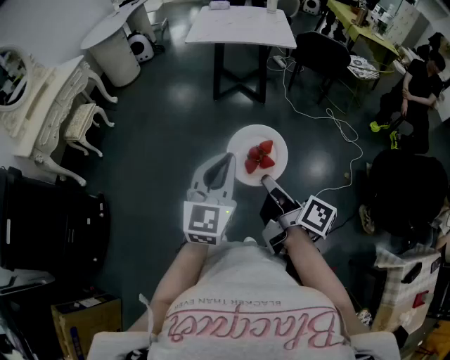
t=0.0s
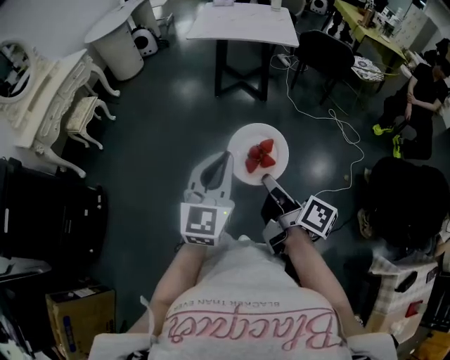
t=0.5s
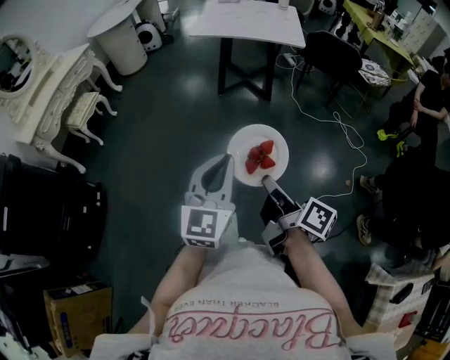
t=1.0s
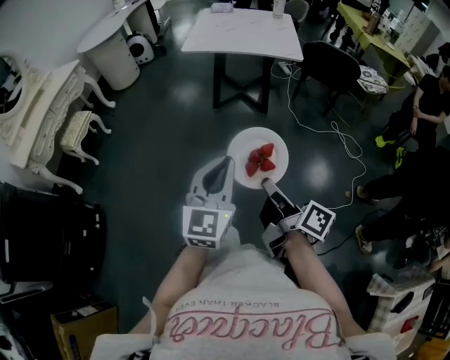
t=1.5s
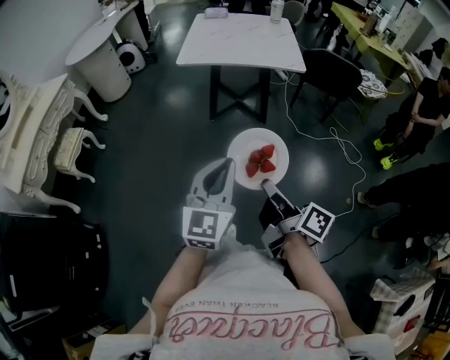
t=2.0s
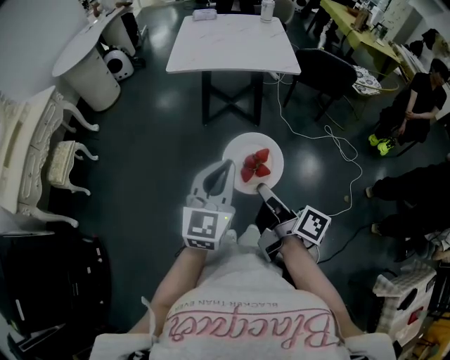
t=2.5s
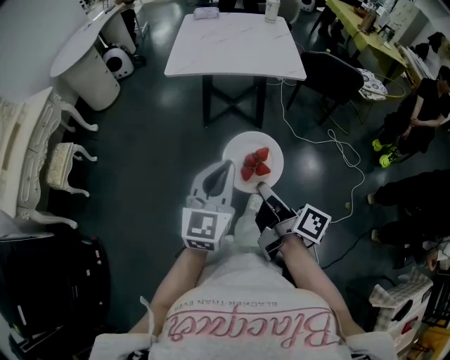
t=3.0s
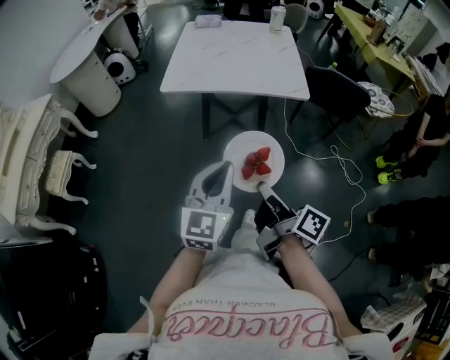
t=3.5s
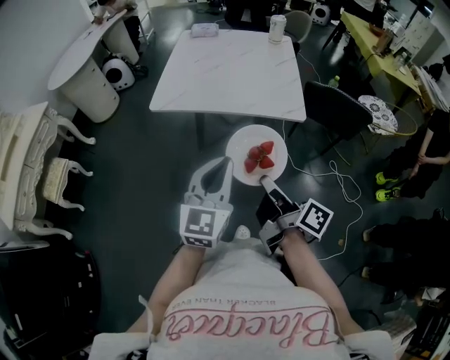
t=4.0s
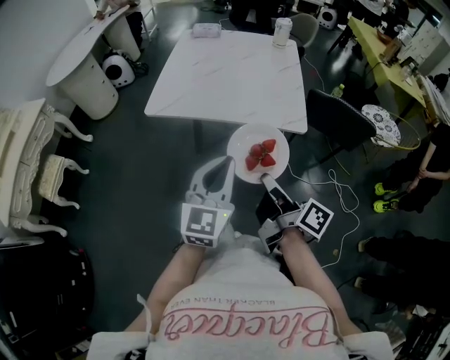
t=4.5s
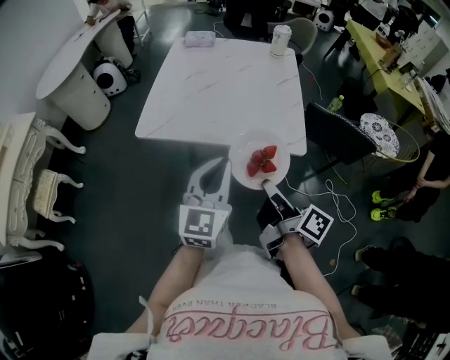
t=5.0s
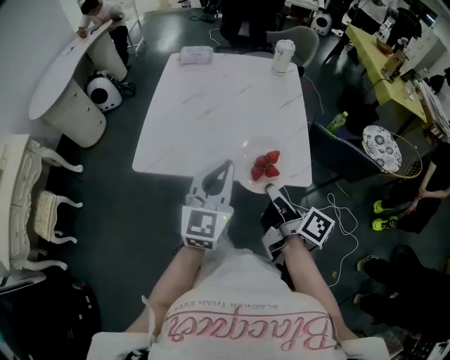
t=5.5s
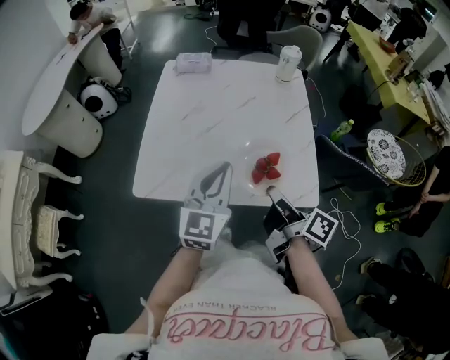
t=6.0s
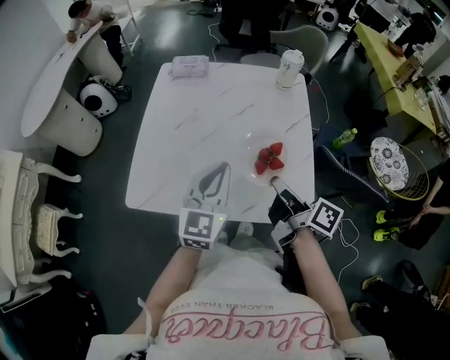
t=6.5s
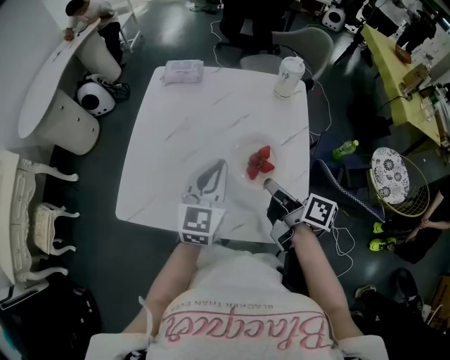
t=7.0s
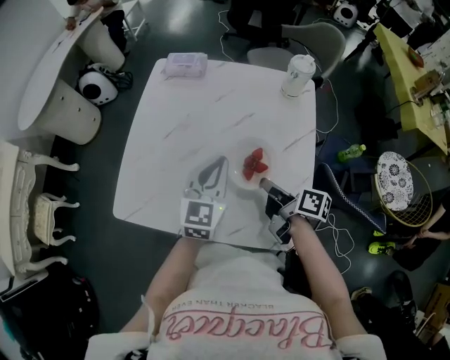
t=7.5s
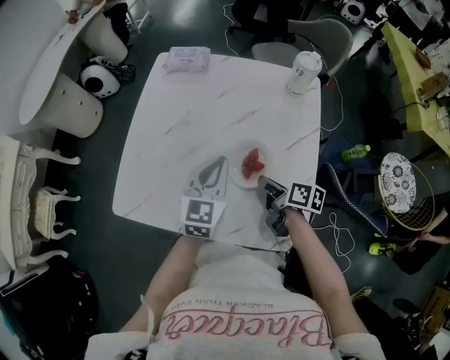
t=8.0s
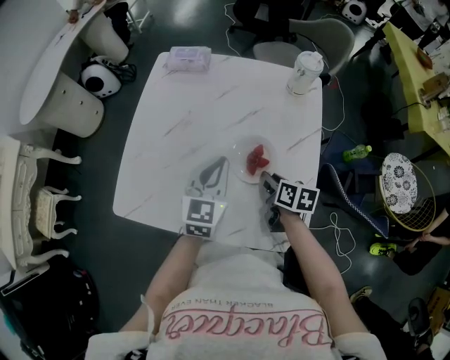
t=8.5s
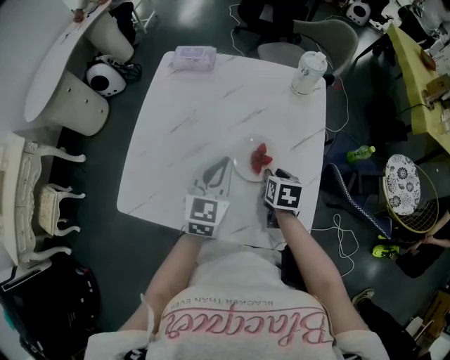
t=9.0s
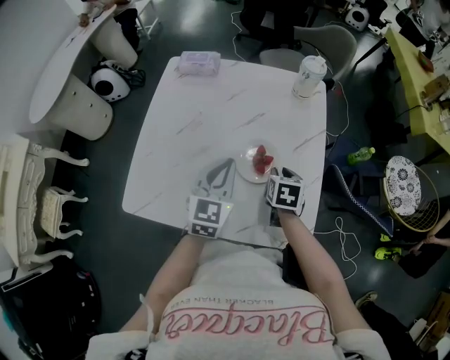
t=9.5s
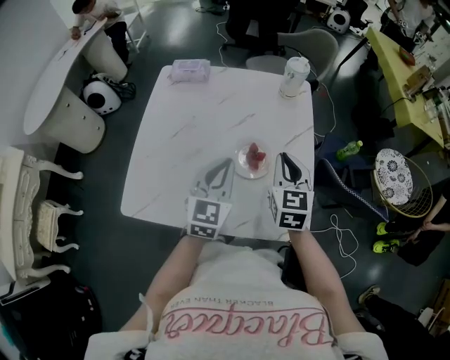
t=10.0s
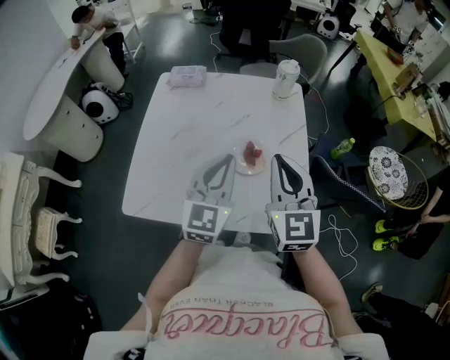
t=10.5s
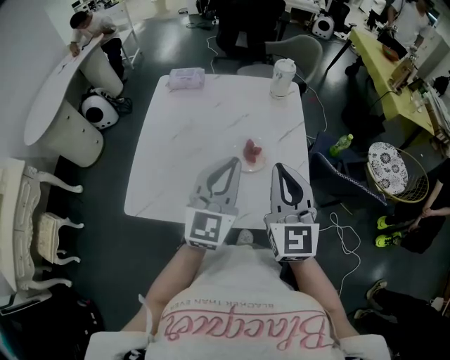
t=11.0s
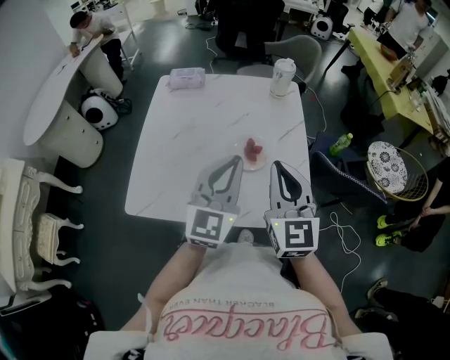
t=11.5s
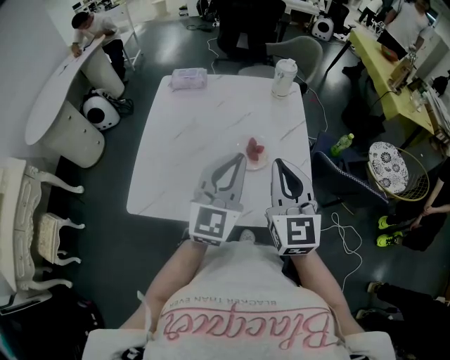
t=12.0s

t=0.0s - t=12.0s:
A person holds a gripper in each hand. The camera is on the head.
t=0.0s - t=2.0s: Both grippers travel together forward, about 25 cm.
t=2.0s - t=4.0s: The grippers both shift forward by roughly 35 cm.
t=4.0s - t=6.0s: The two grippers go roughly 40 cm forward.
t=6.0s - t=8.0s: Both grippers travel together forward, downward and to the right, some 25 cm. The right gripper turns by some 30 degrees.
t=8.0s - t=10.0s: The right gripper moves upward, about 15 cm, rotates around the line of its fingers by roughly 60 degrees, counterclockwise from behind, and opens, then closes once more. The left gripper moves approximately 5 cm.
t=10.0s - t=12.0s: The left gripper is displaced upward and backward by approximately 15 cm. Meanwhile the right gripper travels backward and upward by about 15 cm.

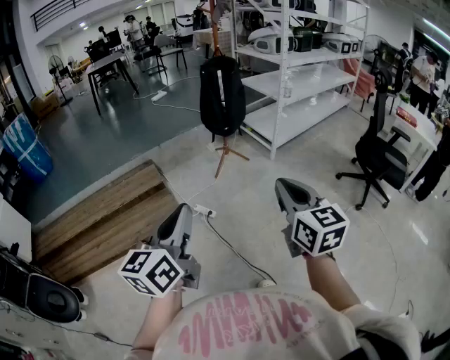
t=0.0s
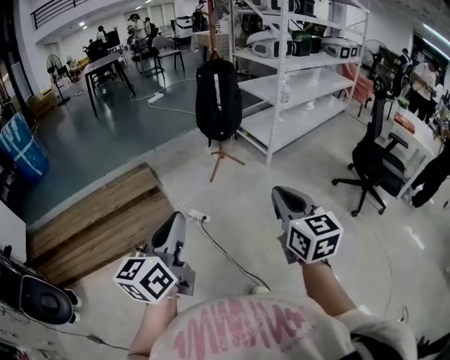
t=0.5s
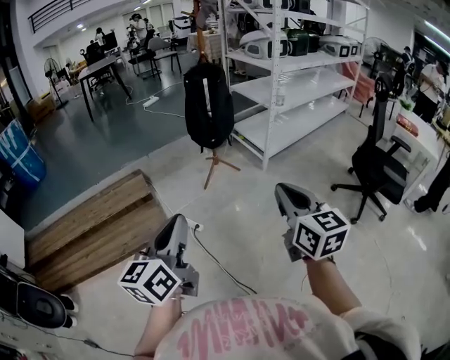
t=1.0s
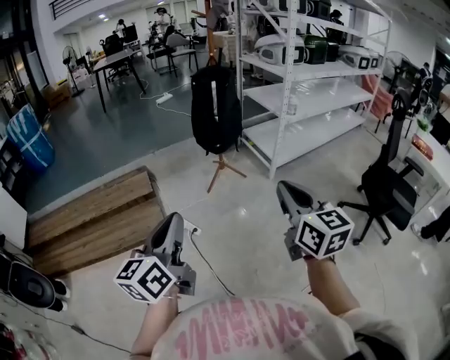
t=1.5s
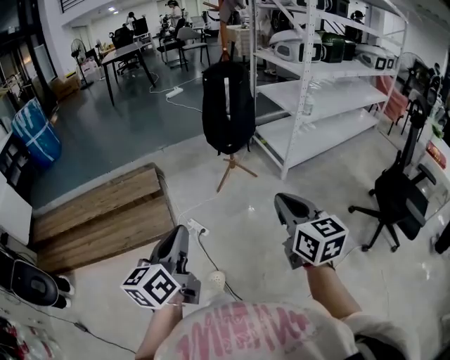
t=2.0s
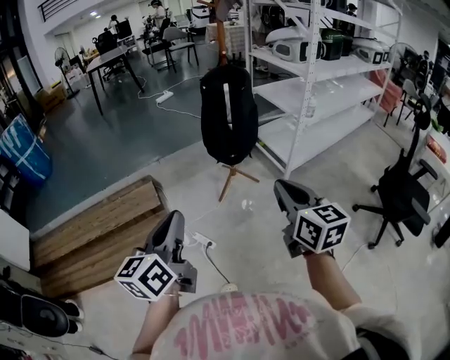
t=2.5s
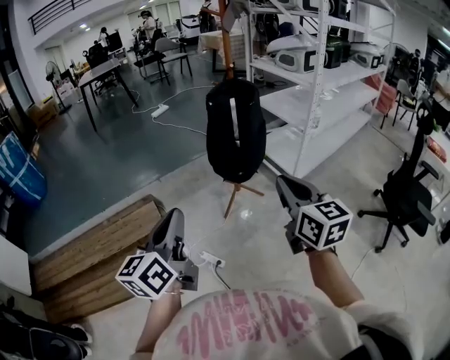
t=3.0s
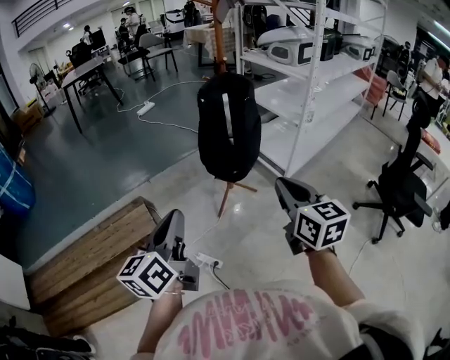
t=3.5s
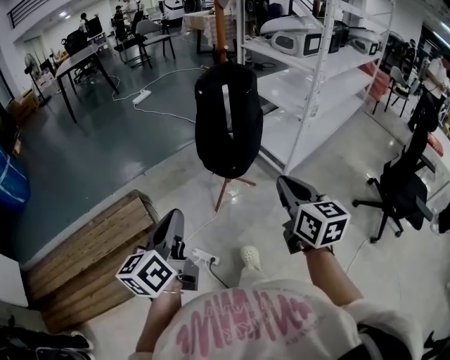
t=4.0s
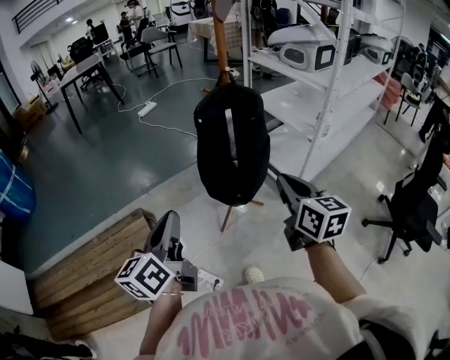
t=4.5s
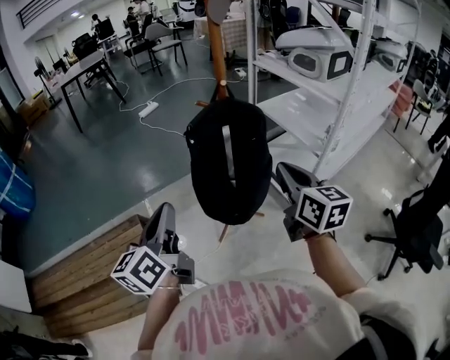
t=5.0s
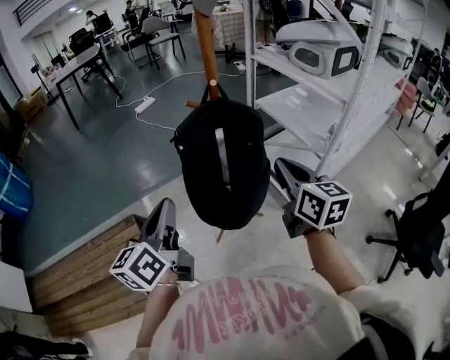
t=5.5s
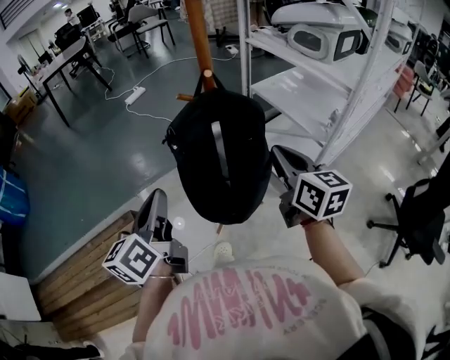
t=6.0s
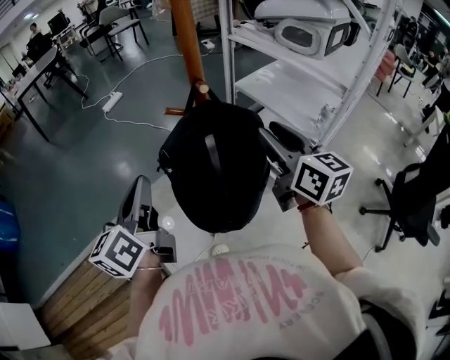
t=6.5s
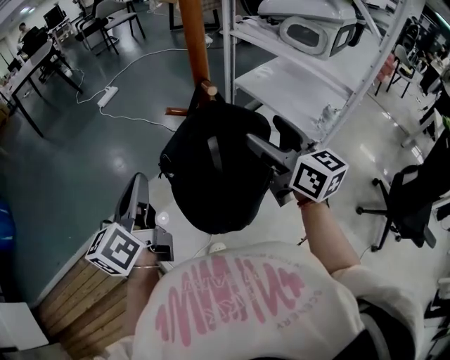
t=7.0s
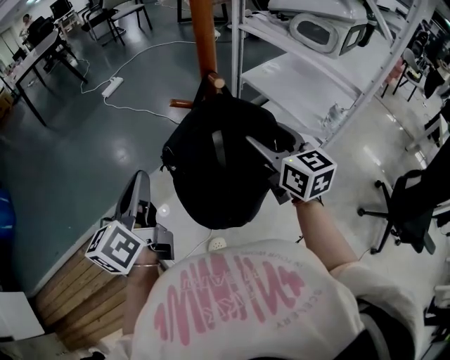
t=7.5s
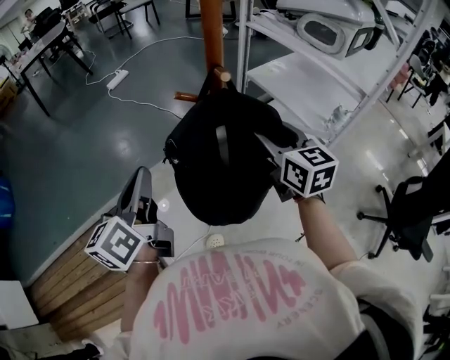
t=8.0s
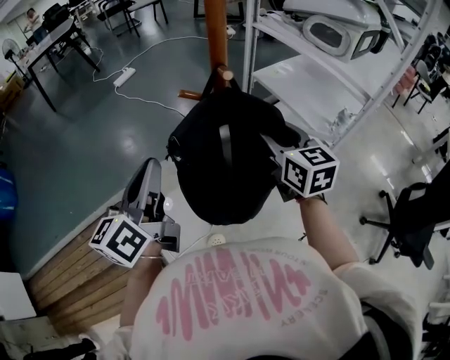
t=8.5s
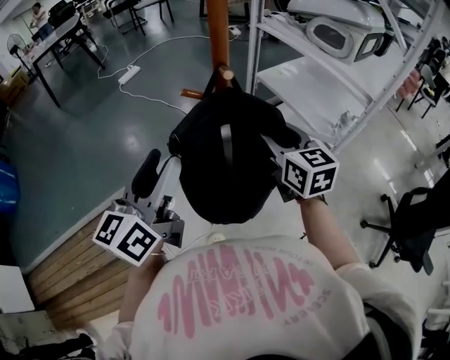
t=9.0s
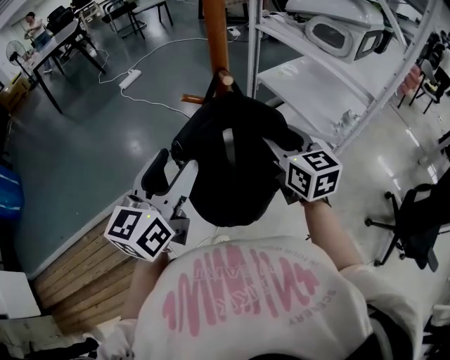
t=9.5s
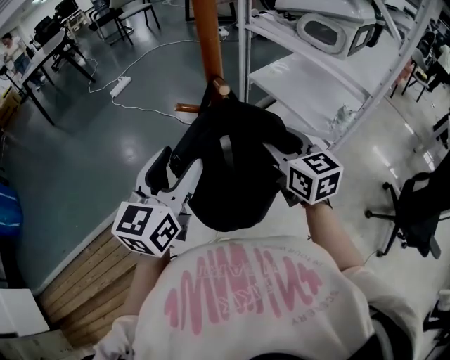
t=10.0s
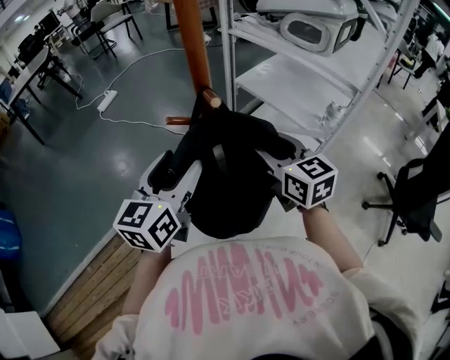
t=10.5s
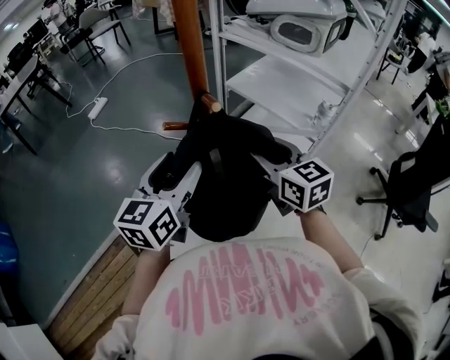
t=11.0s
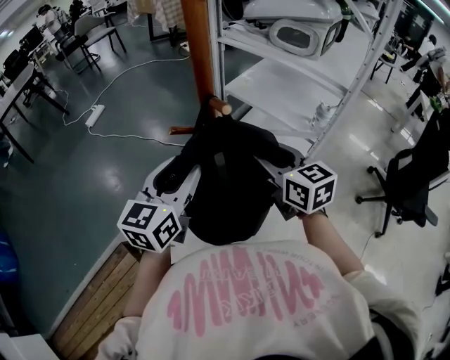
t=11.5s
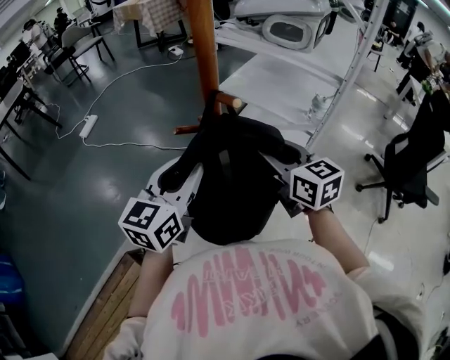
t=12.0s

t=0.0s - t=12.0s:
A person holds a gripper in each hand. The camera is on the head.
t=0.0s - t=2.0s: The left gripper travels forward, to the right and downward by some 20 cm. The right gripper shifts some 25 cm forward and to the right.
t=2.0s - t=4.0s: Both grippers move forward, approximately 35 cm.
t=4.0s - t=6.0s: Both grippers move forward, roughly 35 cm.
t=6.0s - t=8.0s: The grippers both shift forward by some 10 cm. The right gripper opens its fingers.
t=8.0s - t=10.0s: The left gripper goes some 10 cm to the right, rotates roughly 30 degrees, and opens its fingers.
t=10.0s - t=12.0s: The left gripper turns by some 20 degrees, and closes up.

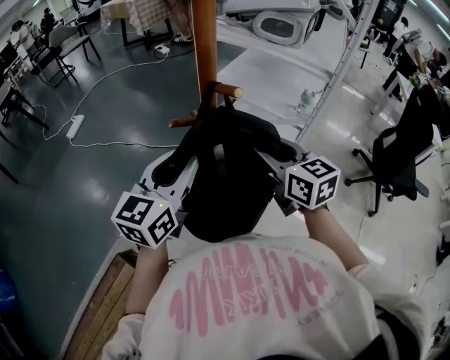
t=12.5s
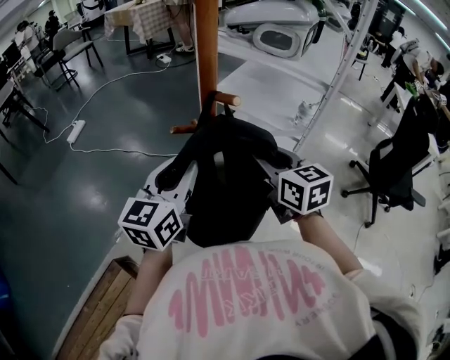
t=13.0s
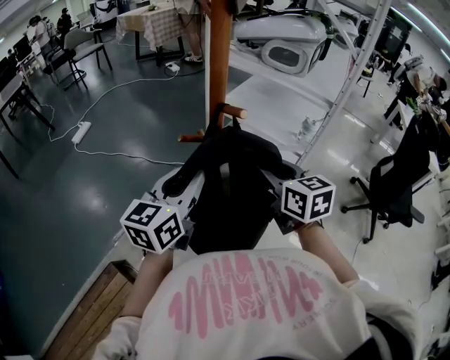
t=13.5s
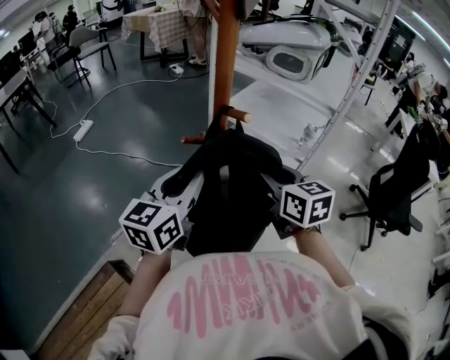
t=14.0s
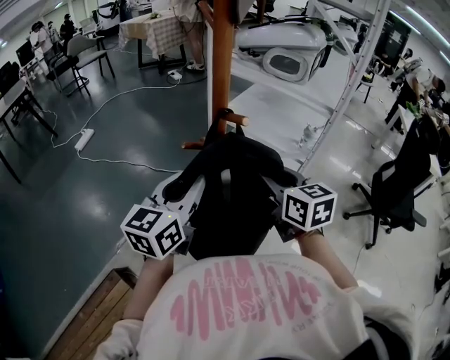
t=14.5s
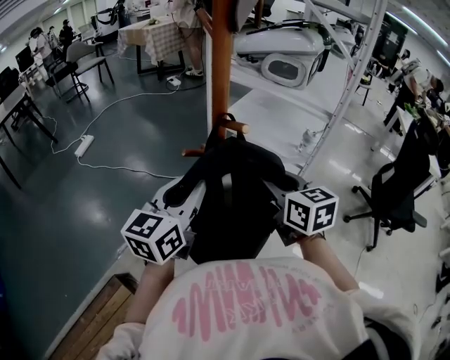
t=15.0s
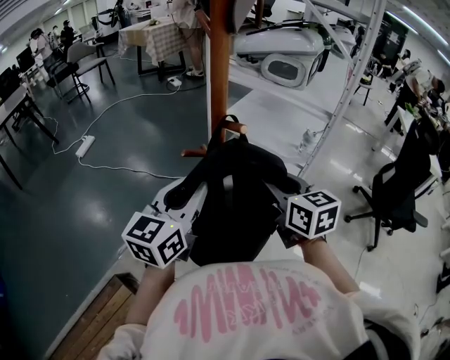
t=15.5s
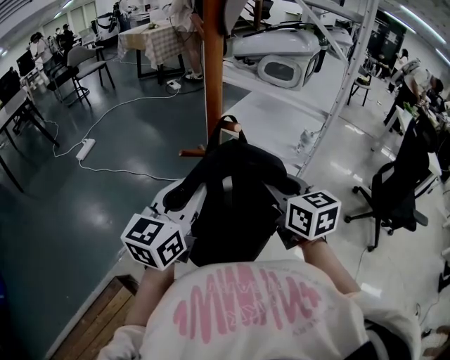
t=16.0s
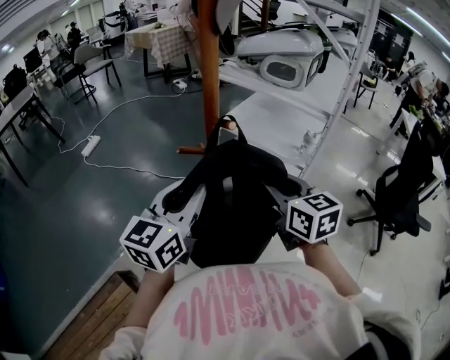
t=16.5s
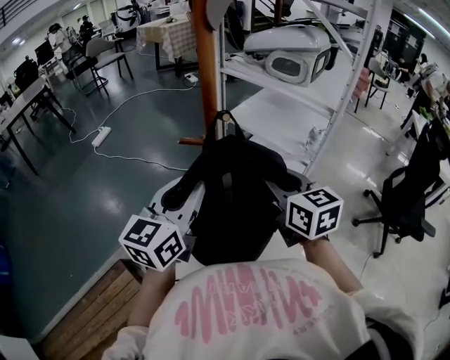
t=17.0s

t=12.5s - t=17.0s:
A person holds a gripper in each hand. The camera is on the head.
t=12.5s - t=14.5s: The grippers make only small movements.
t=14.5s - t=17.0s: The right gripper moves some 5 cm. Meanwhile the left gripper goes roughly 5 cm backward.
